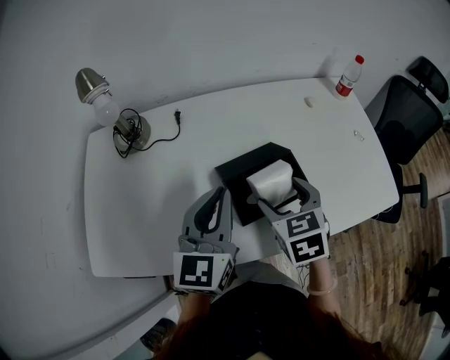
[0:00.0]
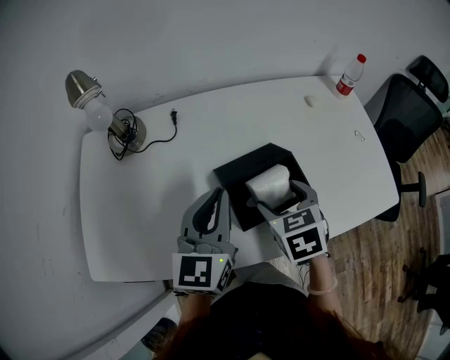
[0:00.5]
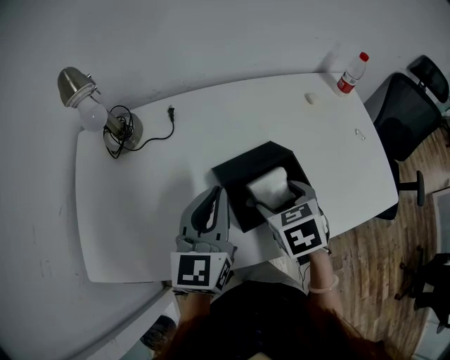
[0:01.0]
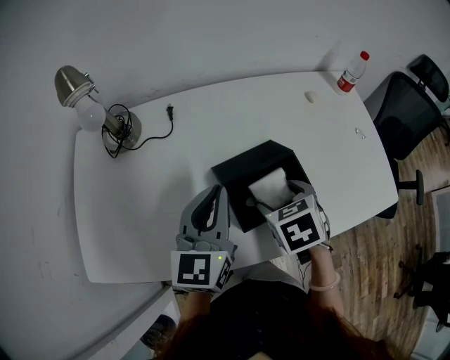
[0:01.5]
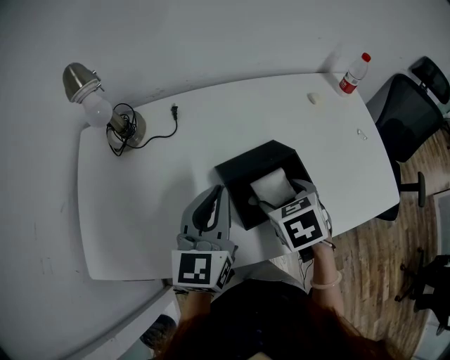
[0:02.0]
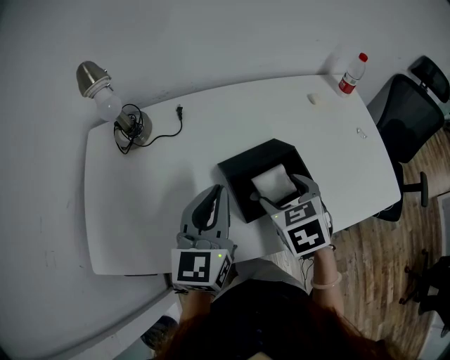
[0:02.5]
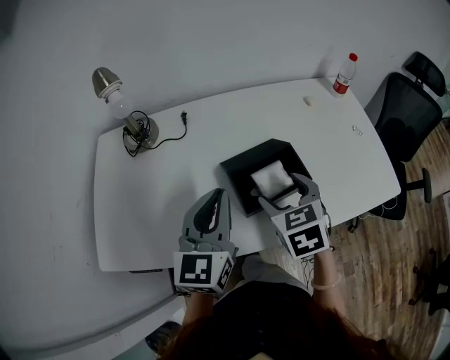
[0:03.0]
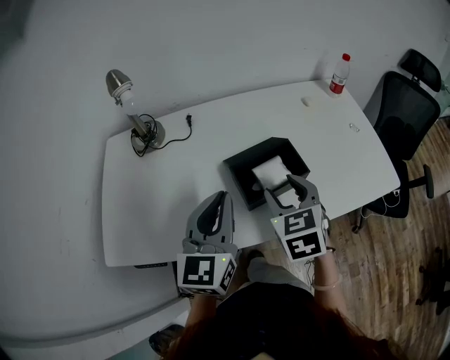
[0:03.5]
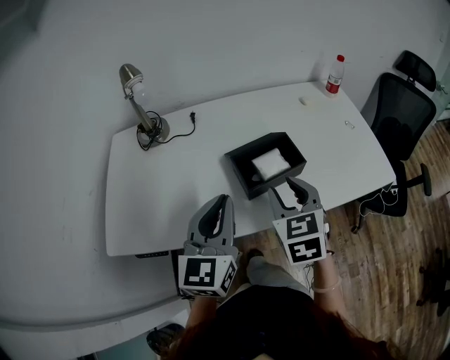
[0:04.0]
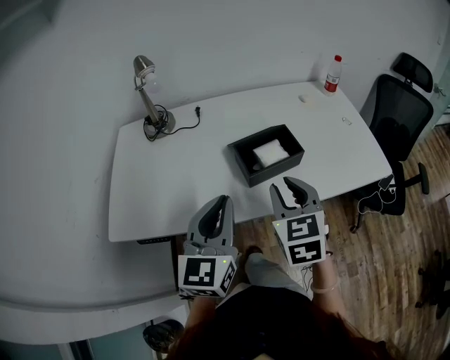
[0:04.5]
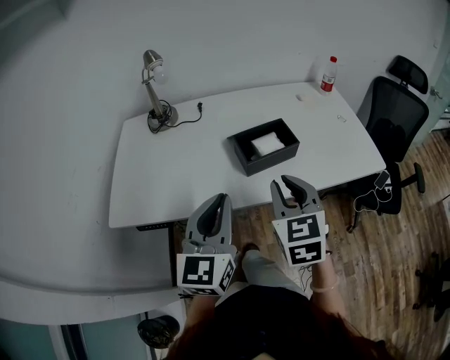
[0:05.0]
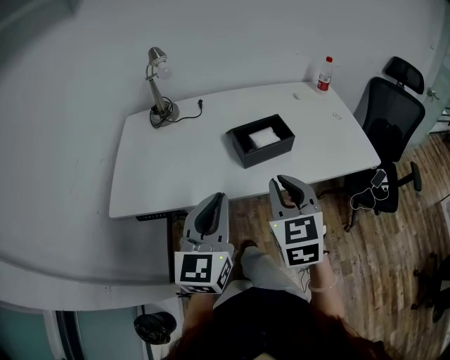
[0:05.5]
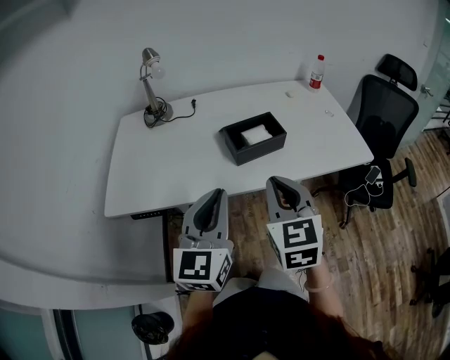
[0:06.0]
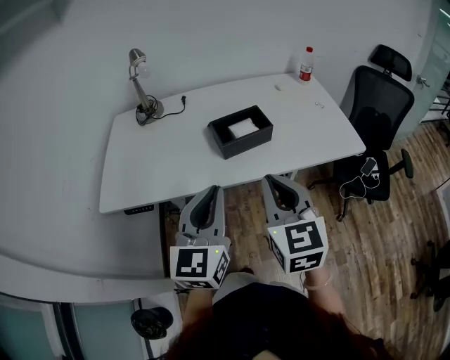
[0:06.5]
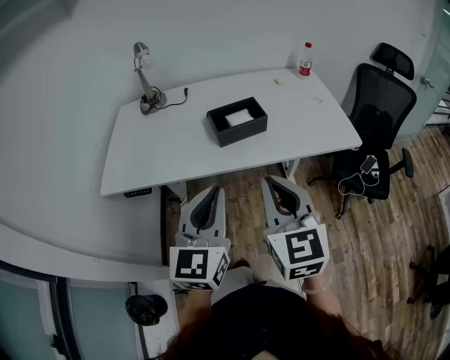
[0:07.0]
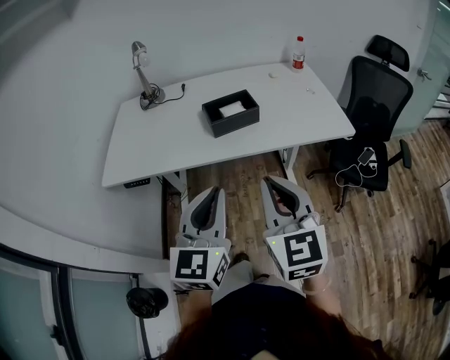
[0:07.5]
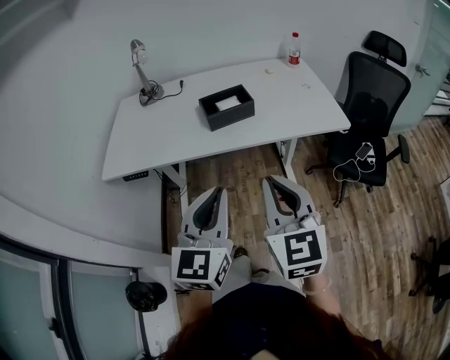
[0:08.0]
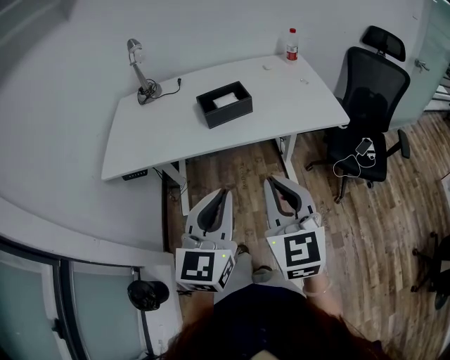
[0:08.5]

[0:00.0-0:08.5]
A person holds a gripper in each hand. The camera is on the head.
0:00.0 to 0:02.0: The grippers stay close to where they were, moving slightly.
0:02.0 to 0:04.0: The right gripper moves backward and upward, about 15 cm, rotates roughly 30 degrees, and closes; the left gripper moves backward, some 15 cm.
0:04.0 to 0:06.5: Both grippers travel together backward, approximately 20 cm. The right gripper closes.
0:06.5 to 0:08.5: Both grippers travel together backward and to the right, roughly 15 cm.

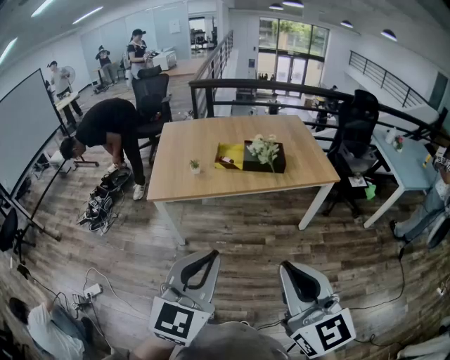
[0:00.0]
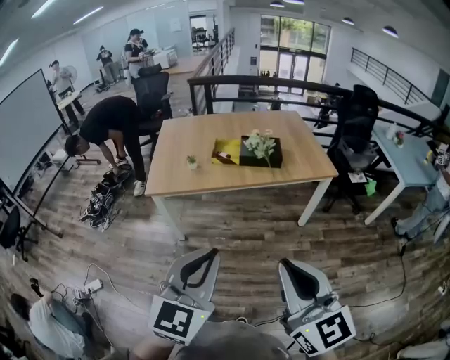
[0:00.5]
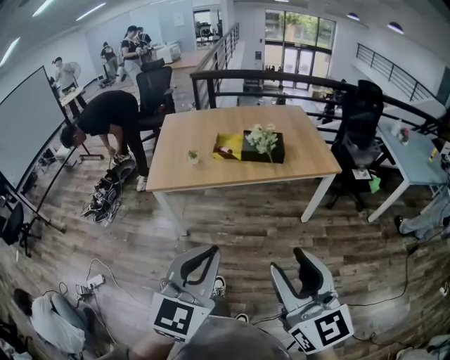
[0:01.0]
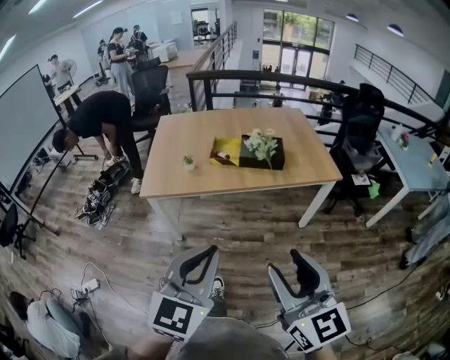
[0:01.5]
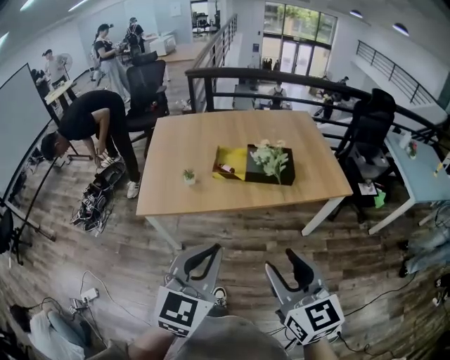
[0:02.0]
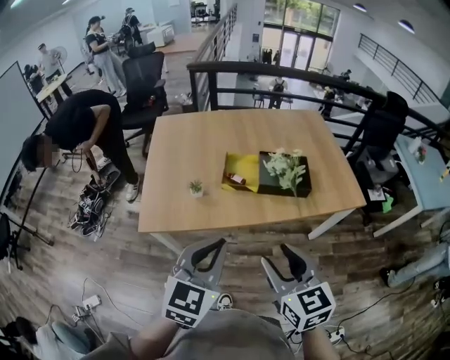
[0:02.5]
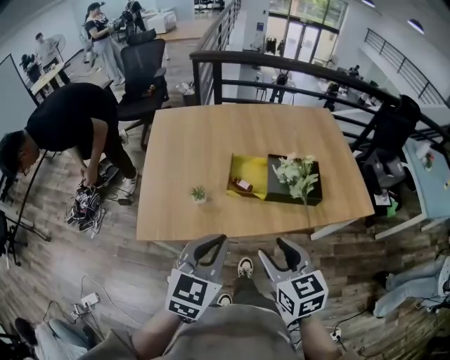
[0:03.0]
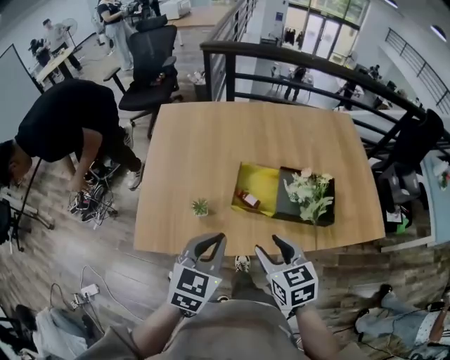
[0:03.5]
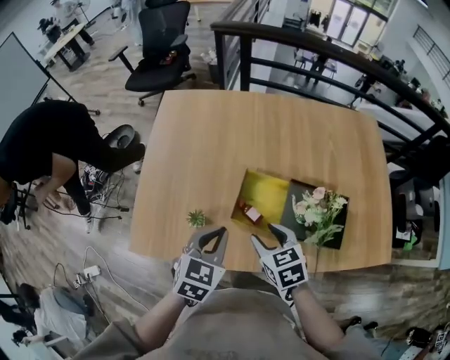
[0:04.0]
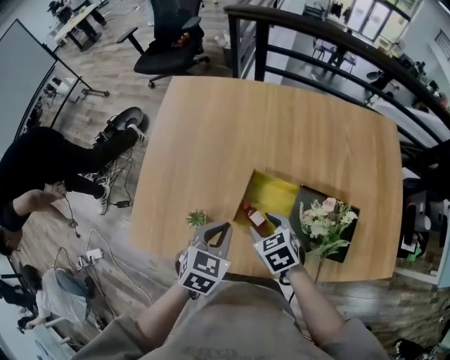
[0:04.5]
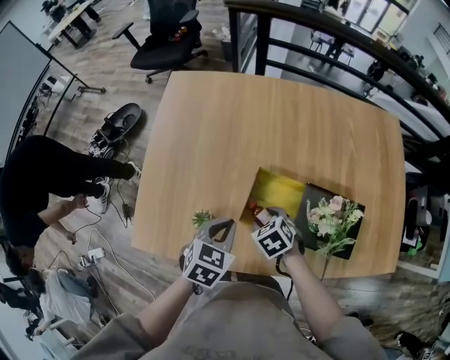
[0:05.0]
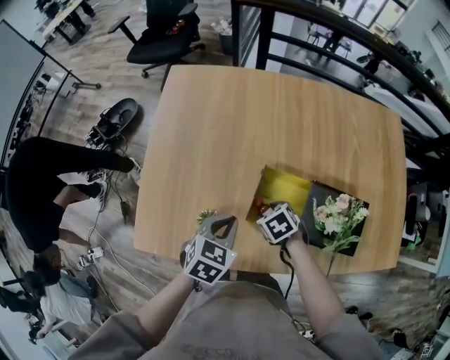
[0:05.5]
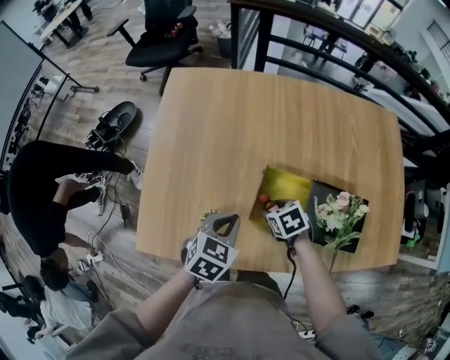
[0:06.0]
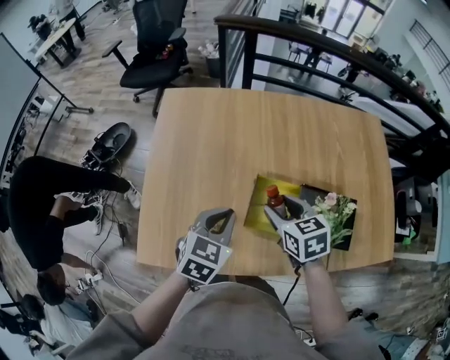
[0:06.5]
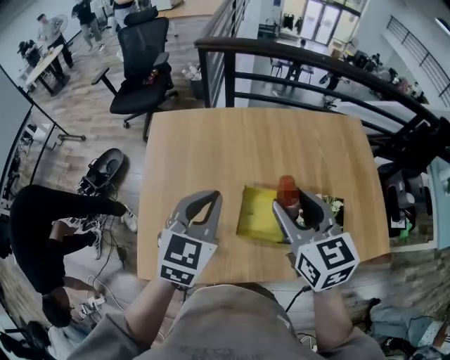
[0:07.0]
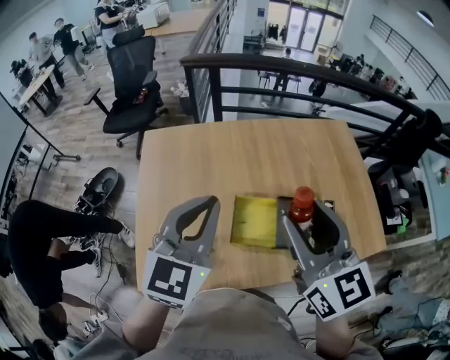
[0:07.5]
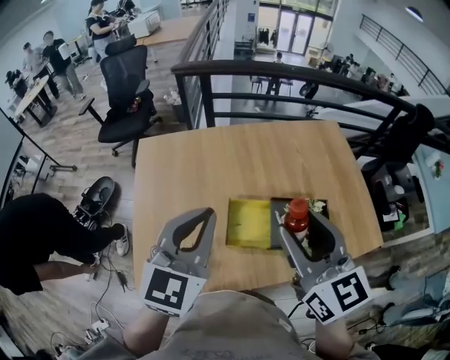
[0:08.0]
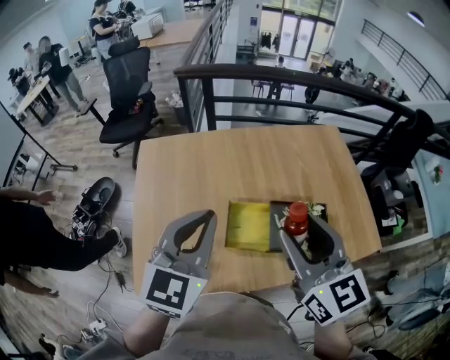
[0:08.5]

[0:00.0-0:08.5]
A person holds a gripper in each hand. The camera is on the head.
0:00.0 to 0:02.0: The grippers both shift forward by approximately 20 cm. The right gripper opens its fingers.
0:02.0 to 0:04.0: The two grippers travel together, forward, roughly 50 cm. The two grippers go some 20 cm downward. The left gripper changes its angle by approximately 30 degrees; the right gripper tilts its fingers roughly 30 degrees downward.
0:04.0 to 0:06.5: Both grippers travel together forward, approximately 10 cm. The right gripper moves about 15 cm downward and comes back.
0:06.5 to 0:08.5: Both grippers travel together upward, approximately 25 cm. The left gripper turns by roughly 30 degrees; the right gripper tips its fingers upward by about 30 degrees.

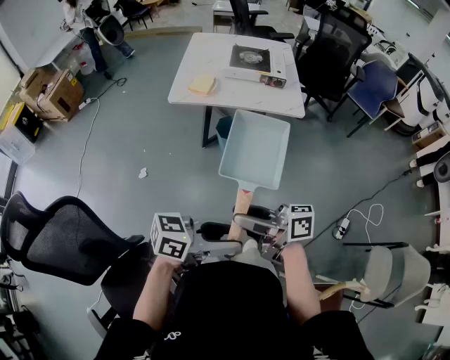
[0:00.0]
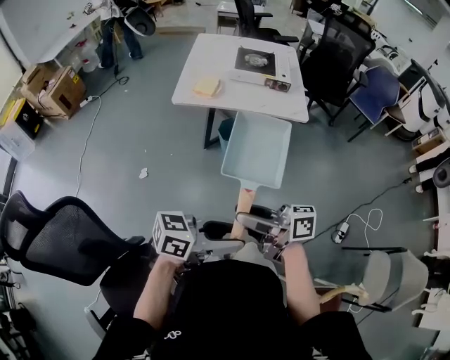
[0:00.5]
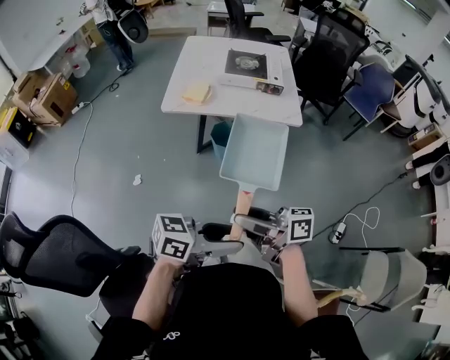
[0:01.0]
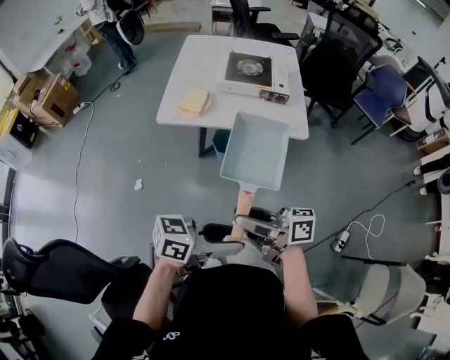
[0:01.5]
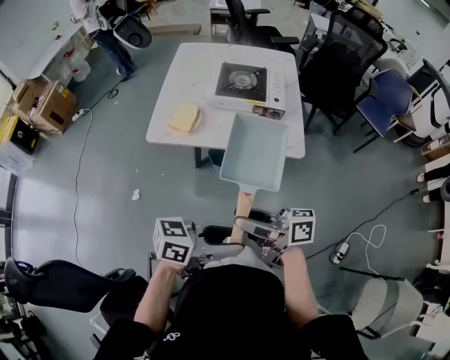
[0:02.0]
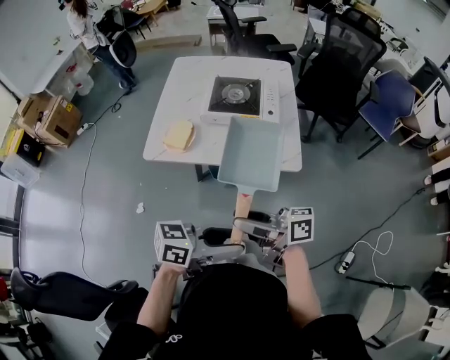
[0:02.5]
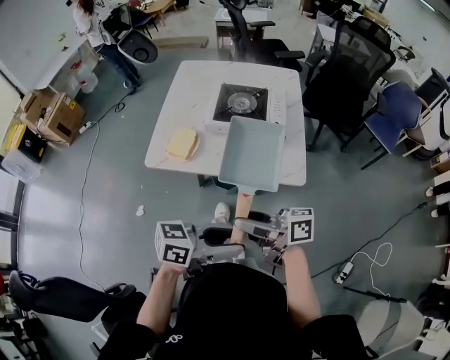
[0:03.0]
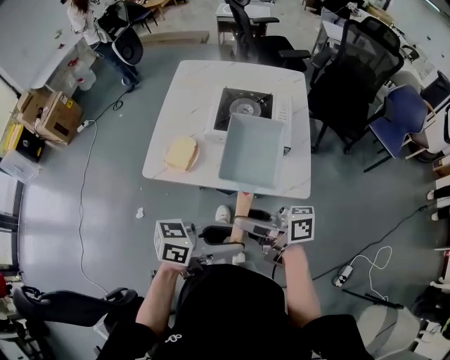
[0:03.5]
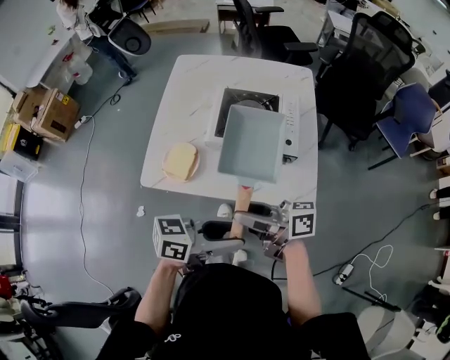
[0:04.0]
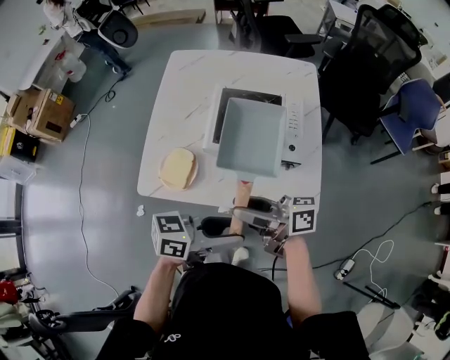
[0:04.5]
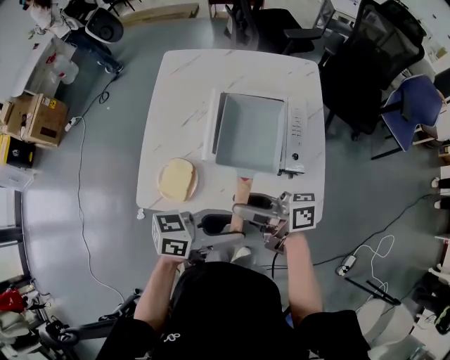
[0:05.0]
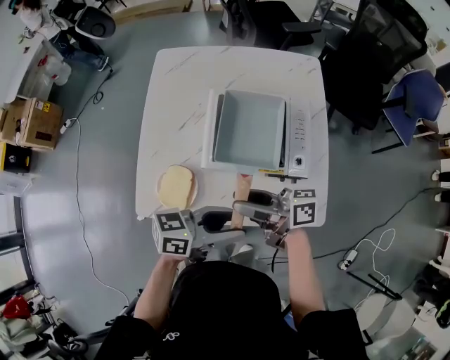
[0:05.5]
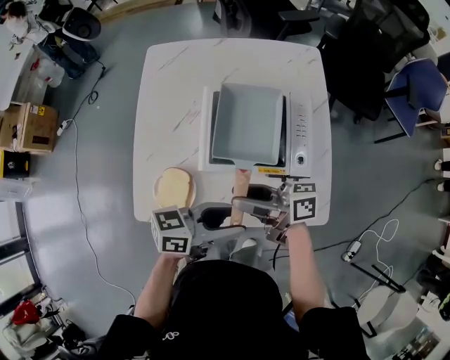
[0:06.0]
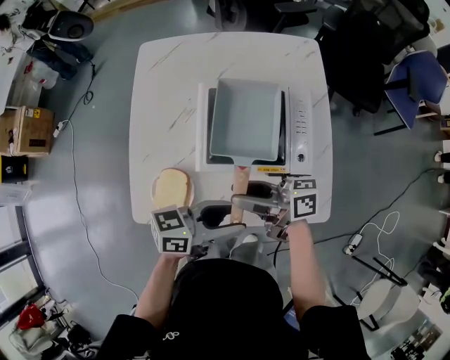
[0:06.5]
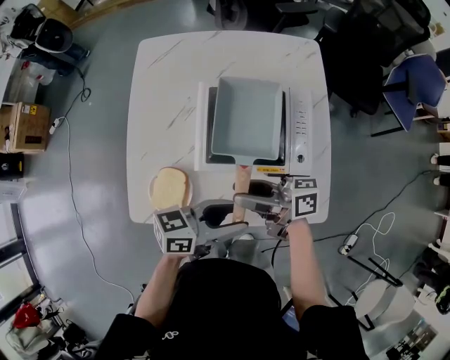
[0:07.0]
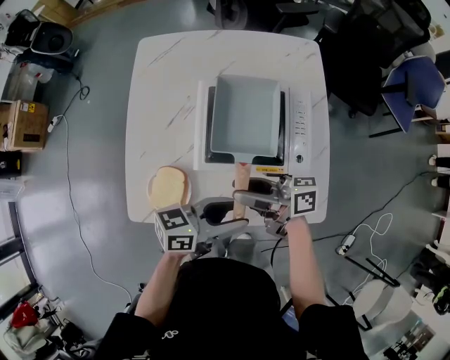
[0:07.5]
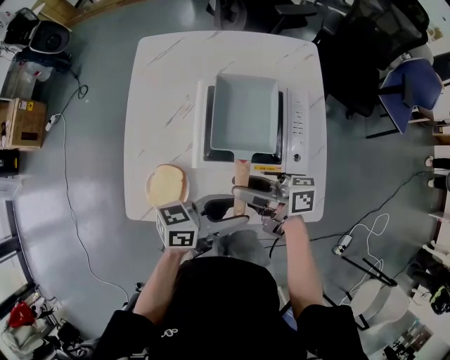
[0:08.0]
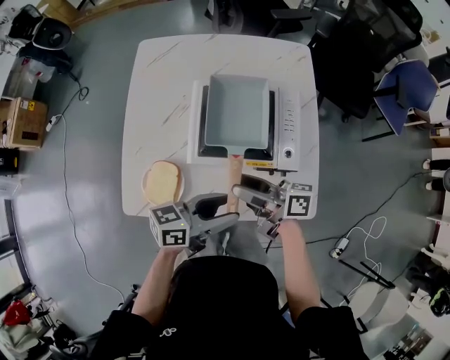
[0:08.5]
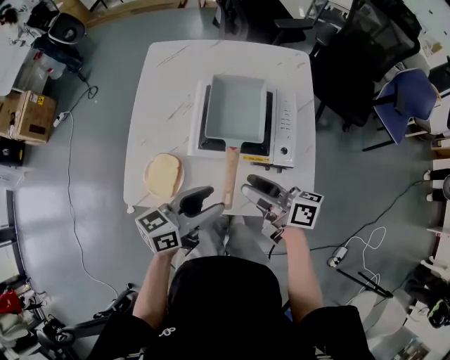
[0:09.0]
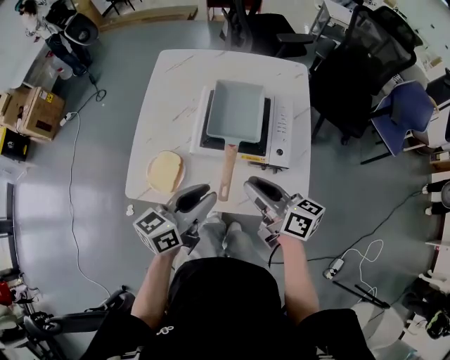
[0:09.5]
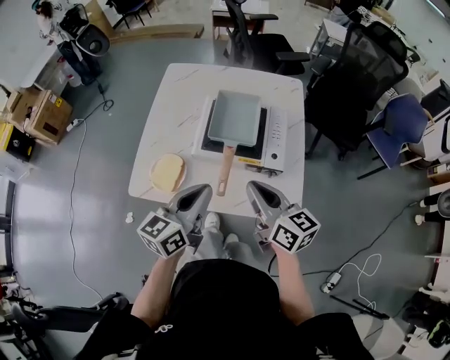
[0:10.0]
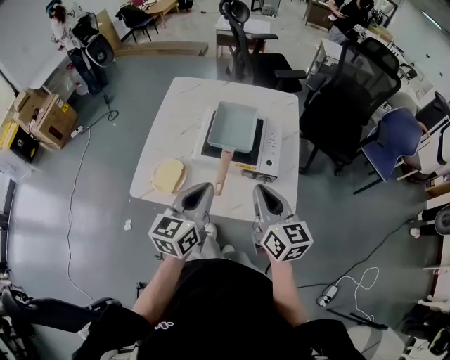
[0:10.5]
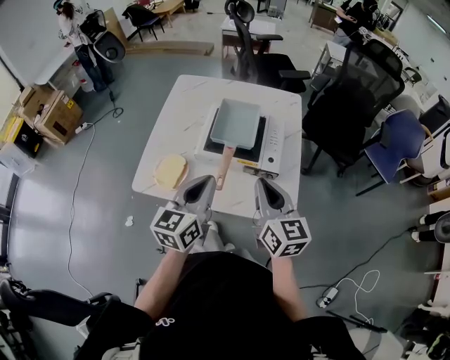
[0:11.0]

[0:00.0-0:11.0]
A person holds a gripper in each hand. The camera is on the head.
0:00.0 to 0:02.0: The left gripper moves about 25 cm, while the right gripper ends up roughly 25 cm from where it was.
0:02.0 to 0:03.5: The left gripper shifts by about 15 cm. Meanwhile the right gripper ends up some 15 cm from where it was.
0:03.5 to 0:05.5: The left gripper changes place by roughly 20 cm. The right gripper changes place by approximately 20 cm.
0:05.5 to 0:07.5: The grippers make only small movements.
0:07.5 to 0:09.0: The right gripper ends up some 5 cm from where it was. Meanwhile the left gripper turns by roughly 20 degrees.
0:09.0 to 0:11.0: The right gripper goes some 15 cm upward, backward and to the right, rotates around the line of its fingers by approximately 40 degrees, counterclockwise from behind, and closes its fingers. Meanwhile the left gripper moves upward, roughly 10 cm, turns by approximately 40 degrees, and closes up.
